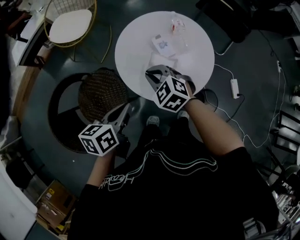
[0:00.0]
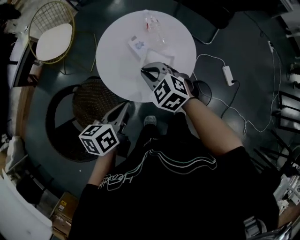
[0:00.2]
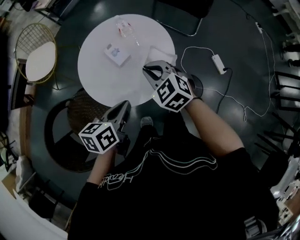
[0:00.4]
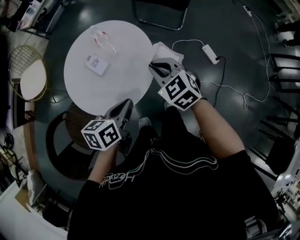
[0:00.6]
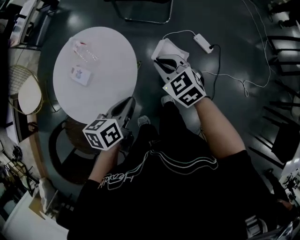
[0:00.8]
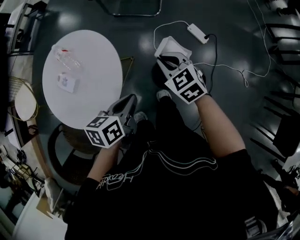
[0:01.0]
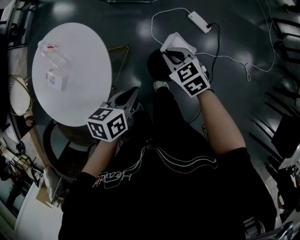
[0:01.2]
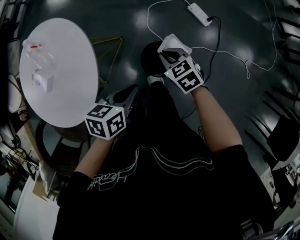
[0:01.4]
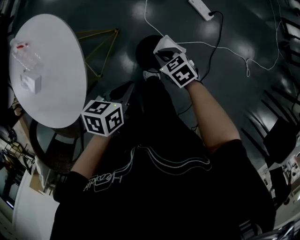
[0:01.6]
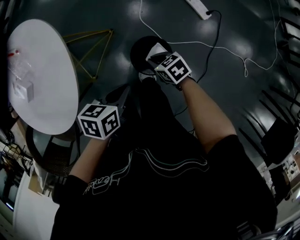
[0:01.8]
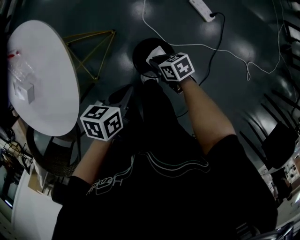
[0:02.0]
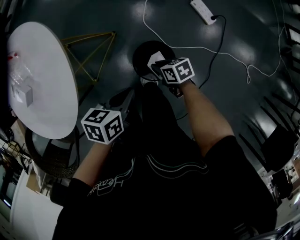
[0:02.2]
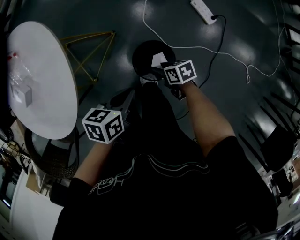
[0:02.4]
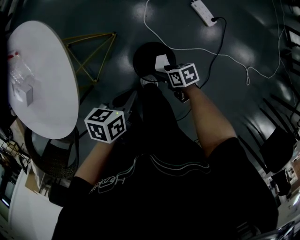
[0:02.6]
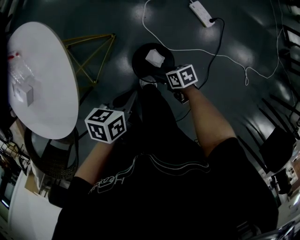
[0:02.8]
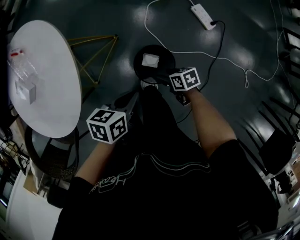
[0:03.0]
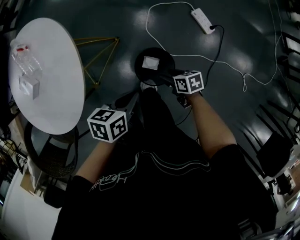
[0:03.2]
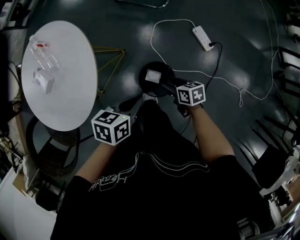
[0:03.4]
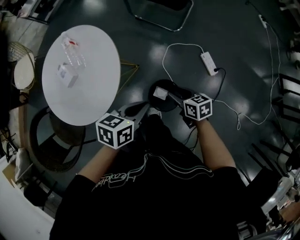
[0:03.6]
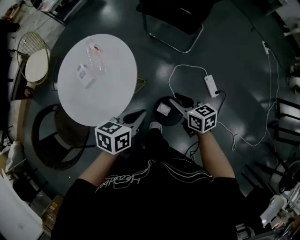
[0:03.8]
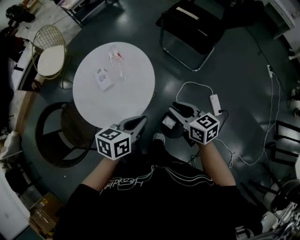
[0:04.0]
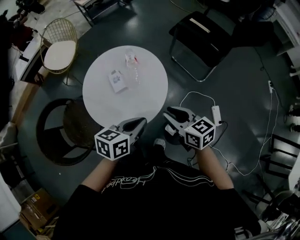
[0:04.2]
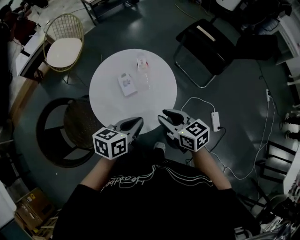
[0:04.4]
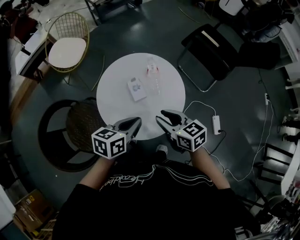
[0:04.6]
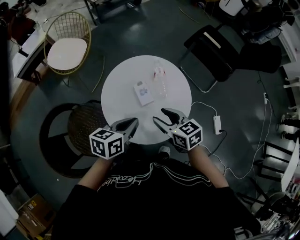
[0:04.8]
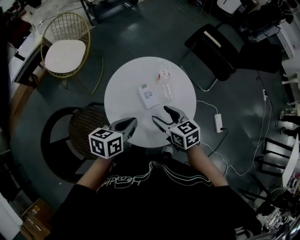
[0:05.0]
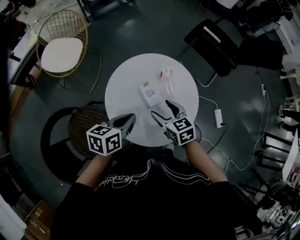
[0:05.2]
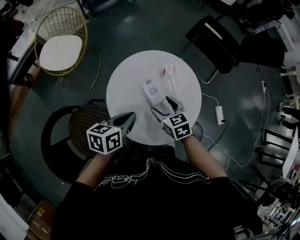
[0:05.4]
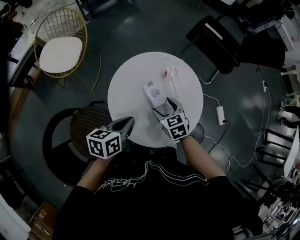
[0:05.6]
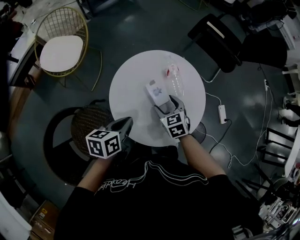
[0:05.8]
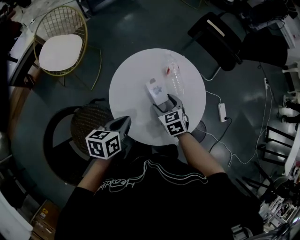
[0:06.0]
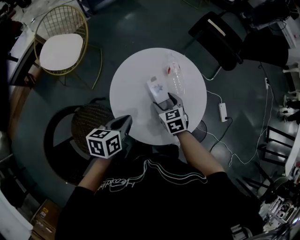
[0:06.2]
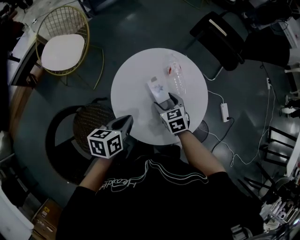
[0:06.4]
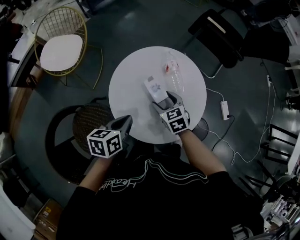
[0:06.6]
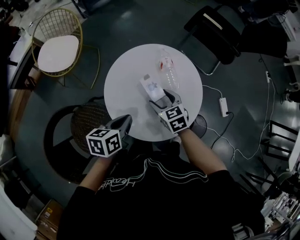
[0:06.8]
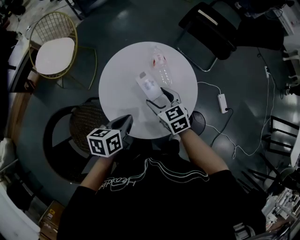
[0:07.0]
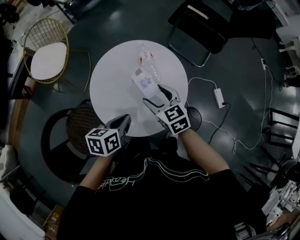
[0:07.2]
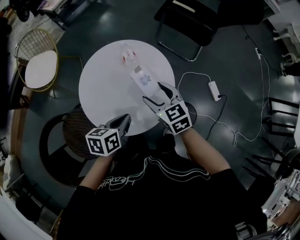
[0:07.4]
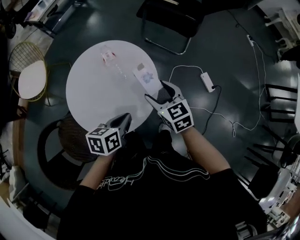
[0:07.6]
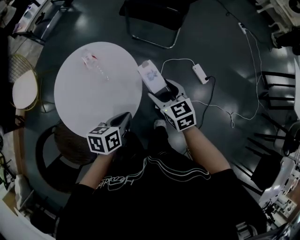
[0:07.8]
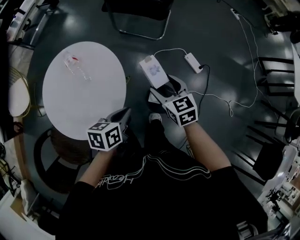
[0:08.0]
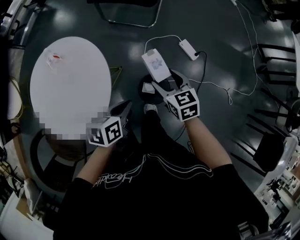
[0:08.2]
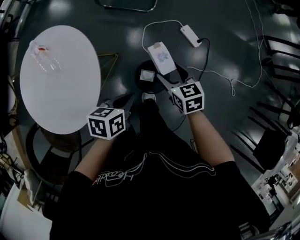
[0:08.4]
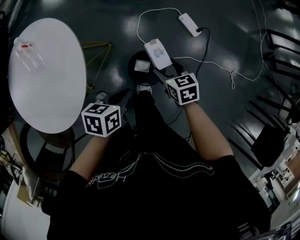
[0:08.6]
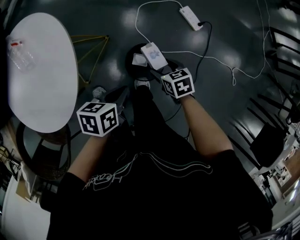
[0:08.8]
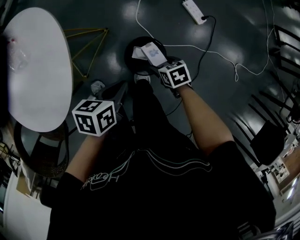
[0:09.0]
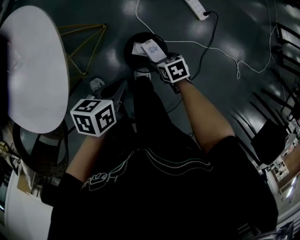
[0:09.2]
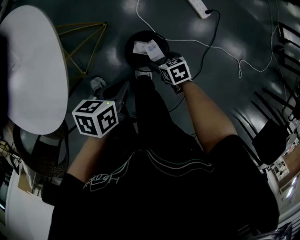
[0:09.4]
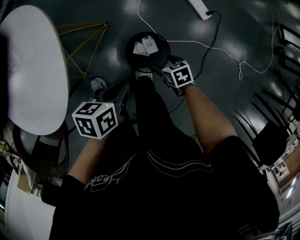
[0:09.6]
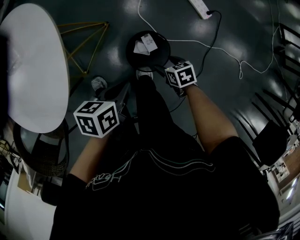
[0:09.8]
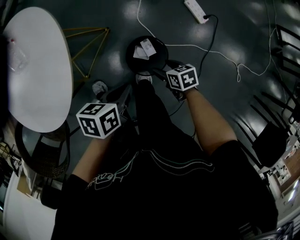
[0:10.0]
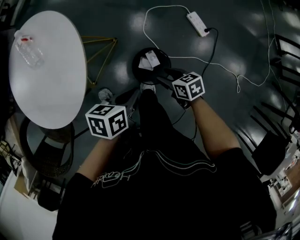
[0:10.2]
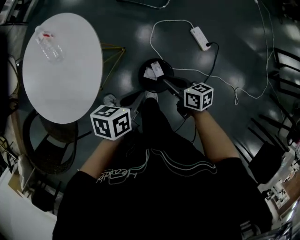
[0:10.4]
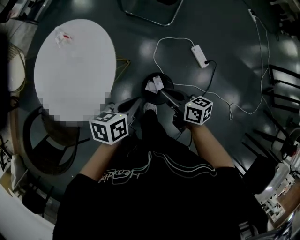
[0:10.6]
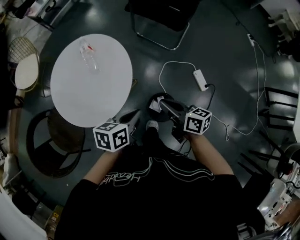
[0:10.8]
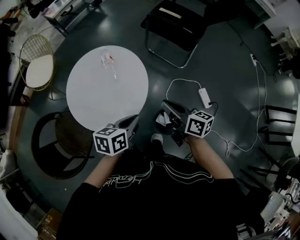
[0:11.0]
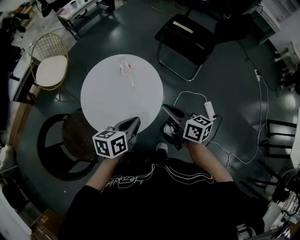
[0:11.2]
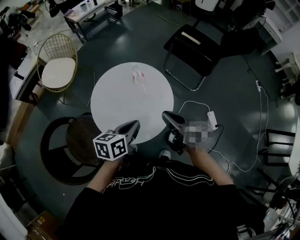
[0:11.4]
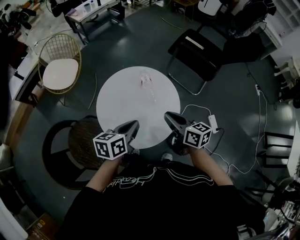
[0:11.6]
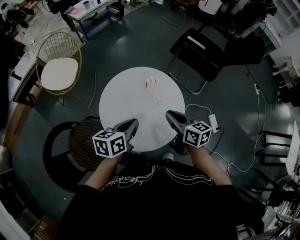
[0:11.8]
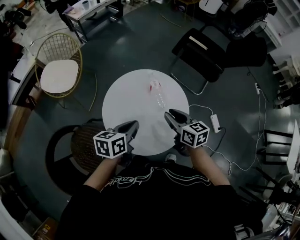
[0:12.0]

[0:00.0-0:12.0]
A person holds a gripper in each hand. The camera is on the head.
0:00.0 to 0:01.6: The pair of grippers is taken approximately 50 cm. The right gripper rolls clockwise, seen from behind, by some 60 degrees; the left gripper turns by approximately 50 degrees.
0:01.6 to 0:03.0: The right gripper shifts about 10 cm downward, rotates some 30 degrees, and opens.
0:03.0 to 0:04.4: The right gripper goes approximately 40 cm upward, rolls counterclockwise, seen from behind, by some 50 degrees, and closes up, while the left gripper goes about 25 cm upward, and turns by about 40 degrees.
0:04.4 to 0:06.0: The right gripper travels downward, to the left and forward by approximately 25 cm, rotates approximately 30 degrees, and opens its fingers. The left gripper goes approximately 25 cm to the left.
0:06.0 to 0:07.6: The left gripper travels to the right by roughly 20 cm; the right gripper shifts approximately 20 cm to the right and upward.
0:07.6 to 0:09.0: The right gripper goes roughly 35 cm downward, and turns by some 40 degrees. The left gripper shifts by about 30 cm, and turns by some 20 degrees.
0:09.0 to 0:10.4: The left gripper goes approximately 10 cm upward. Meanwhile the right gripper heads upward, covering approximately 15 cm, points its fingers some 30 degrees further upward, and closes up.
0:10.4 to 0:12.0: The left gripper is displaced to the left and upward by roughly 40 cm, and rotates roughly 30 degrees; the right gripper heads to the left, upward and forward, covering approximately 50 cm, and changes its angle by some 30 degrees.

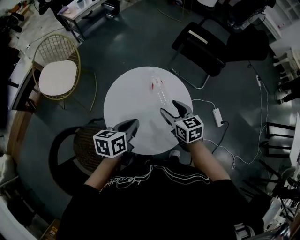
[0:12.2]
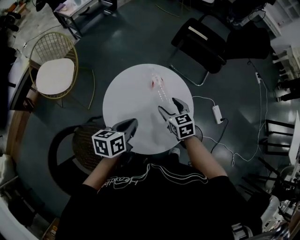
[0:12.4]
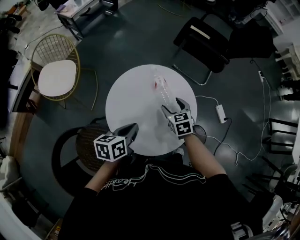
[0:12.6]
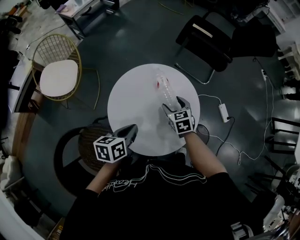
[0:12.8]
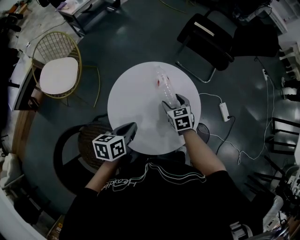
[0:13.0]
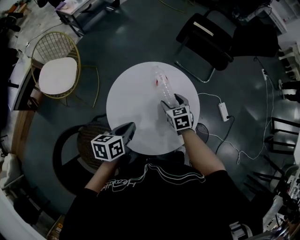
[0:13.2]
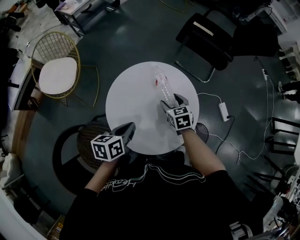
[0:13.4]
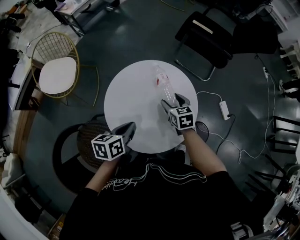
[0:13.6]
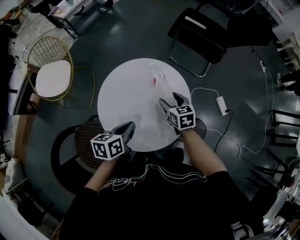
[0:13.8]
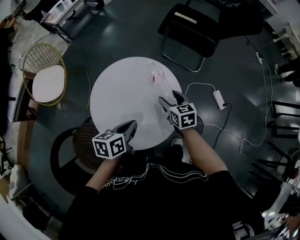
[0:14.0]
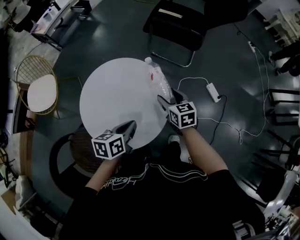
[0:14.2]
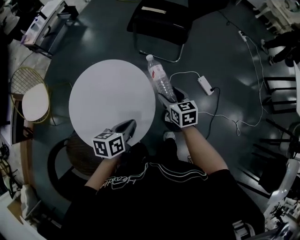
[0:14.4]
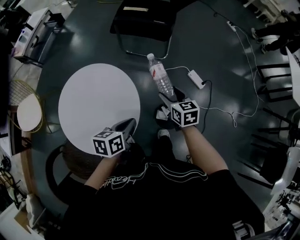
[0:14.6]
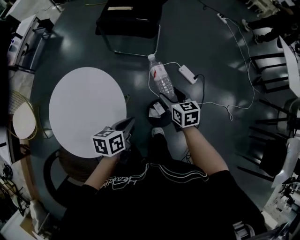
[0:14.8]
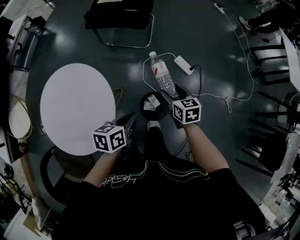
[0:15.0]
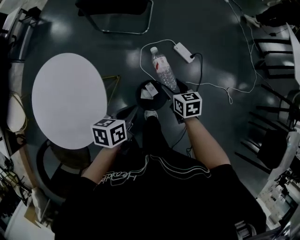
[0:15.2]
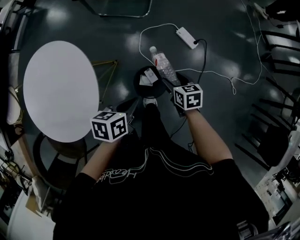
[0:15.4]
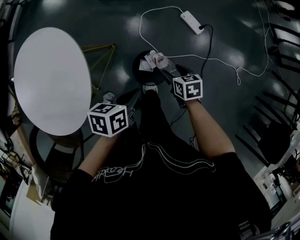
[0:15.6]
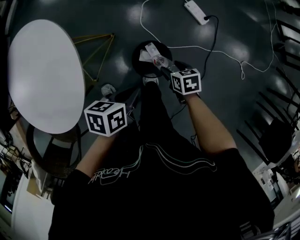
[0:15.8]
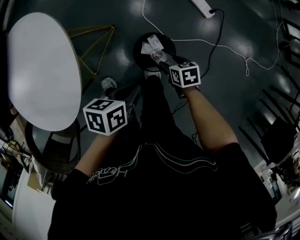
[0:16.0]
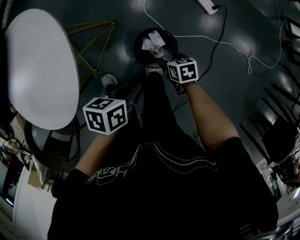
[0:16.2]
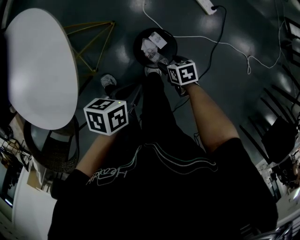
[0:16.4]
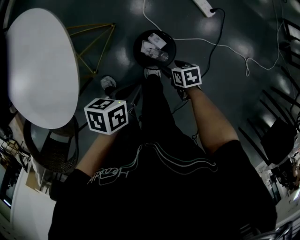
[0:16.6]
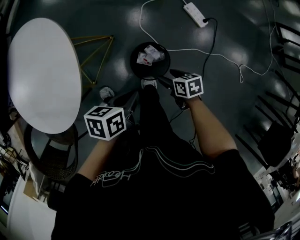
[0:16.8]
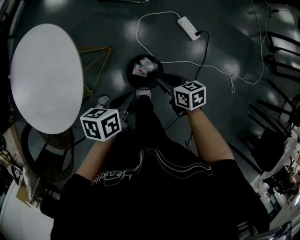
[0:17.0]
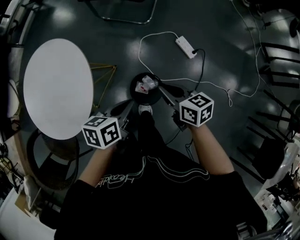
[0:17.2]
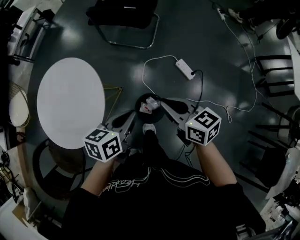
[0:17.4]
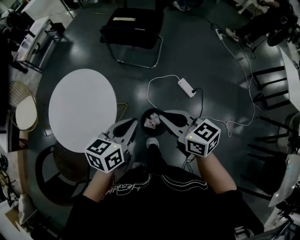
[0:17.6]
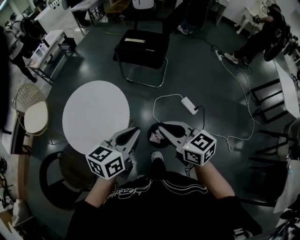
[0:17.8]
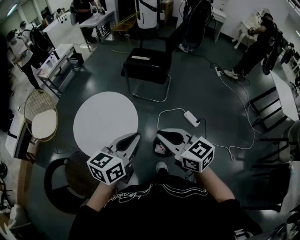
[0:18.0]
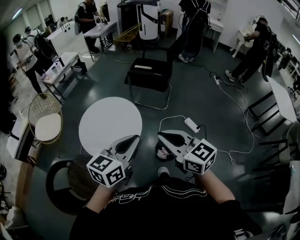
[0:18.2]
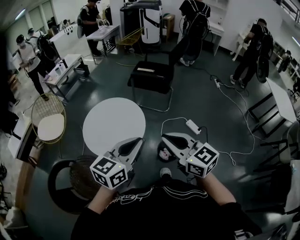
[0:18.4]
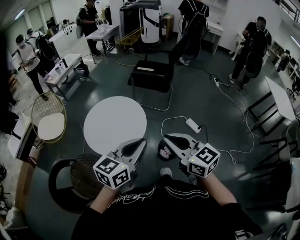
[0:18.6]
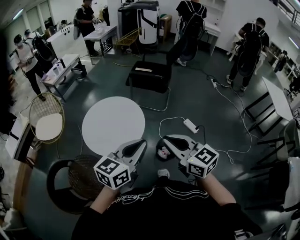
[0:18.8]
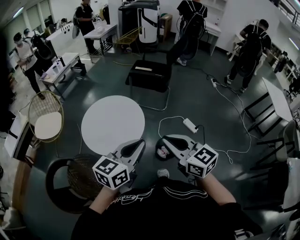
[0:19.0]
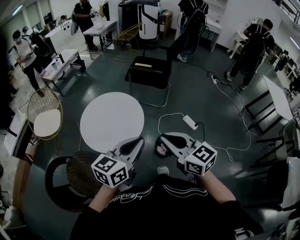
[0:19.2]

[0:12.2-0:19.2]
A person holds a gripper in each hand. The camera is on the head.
0:12.2 to 0:13.6: The right gripper travels downward by some 10 cm.
0:13.6 to 0:15.0: The right gripper moves some 40 cm, and swivels approximately 30 degrees. The left gripper shifts by roughly 40 cm, and rotates approximately 30 degrees.
0:15.0 to 0:16.4: The right gripper travels downward by about 30 cm, and swivels about 30 degrees. Meanwhile the left gripper heads downward, covering about 15 cm.
0:16.4 to 0:17.8: The grippers both shift upward by approximately 50 cm. The left gripper swivels about 50 degrees. The right gripper angles its fingers upward, by approximately 40 degrees, and closes its fingers.
0:17.8 to 0:19.2: The two grippers go approximately 20 cm backward, to the left and upward.

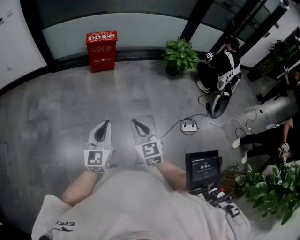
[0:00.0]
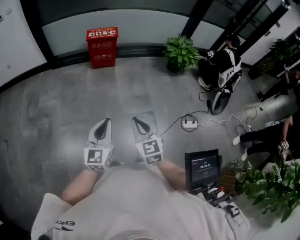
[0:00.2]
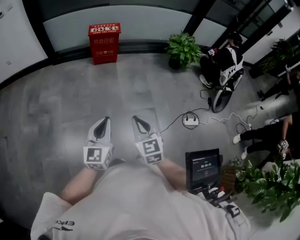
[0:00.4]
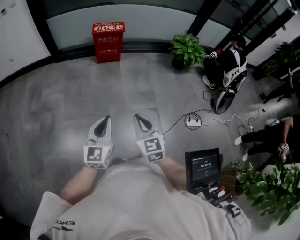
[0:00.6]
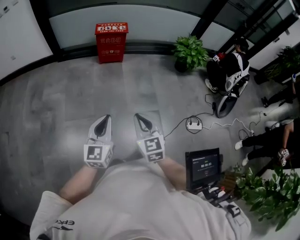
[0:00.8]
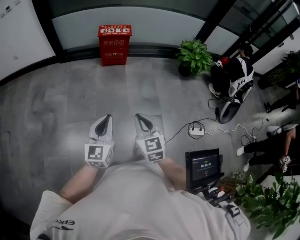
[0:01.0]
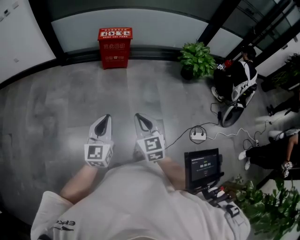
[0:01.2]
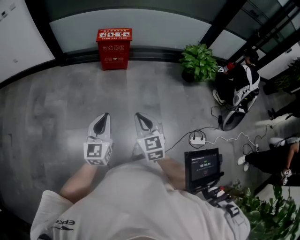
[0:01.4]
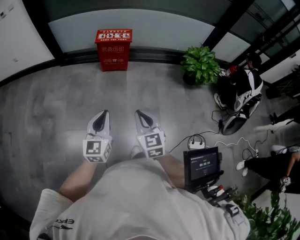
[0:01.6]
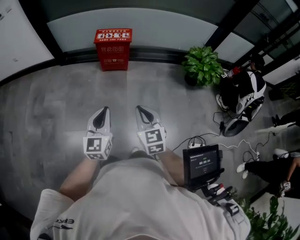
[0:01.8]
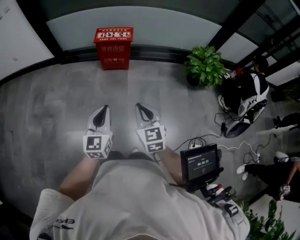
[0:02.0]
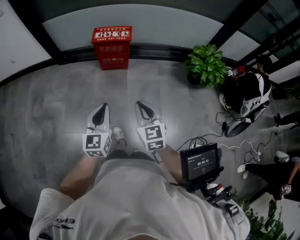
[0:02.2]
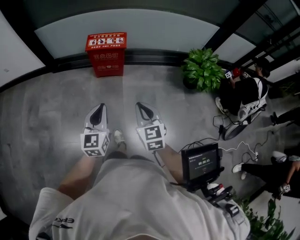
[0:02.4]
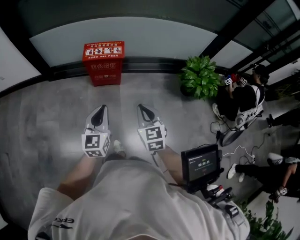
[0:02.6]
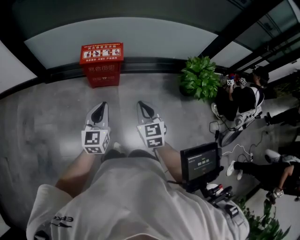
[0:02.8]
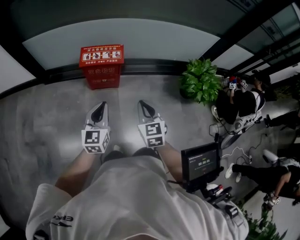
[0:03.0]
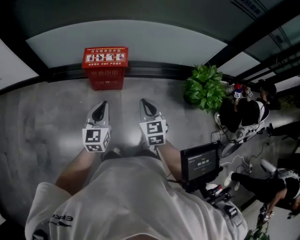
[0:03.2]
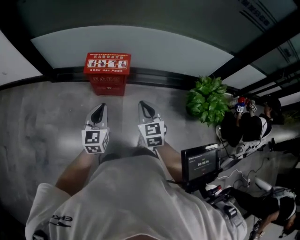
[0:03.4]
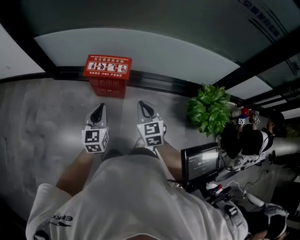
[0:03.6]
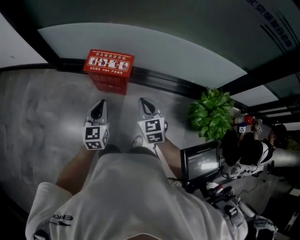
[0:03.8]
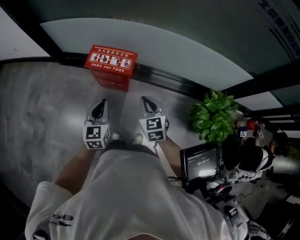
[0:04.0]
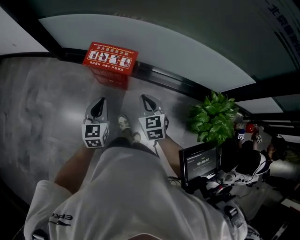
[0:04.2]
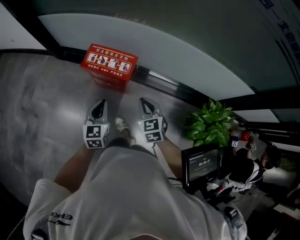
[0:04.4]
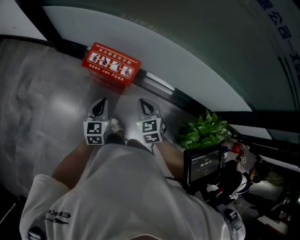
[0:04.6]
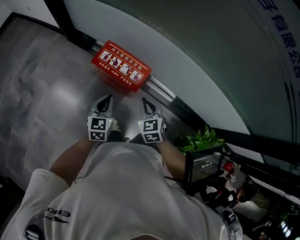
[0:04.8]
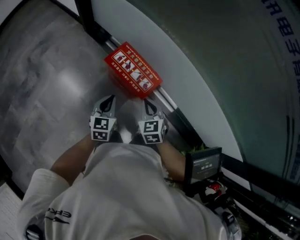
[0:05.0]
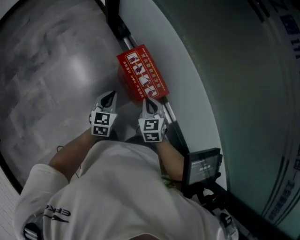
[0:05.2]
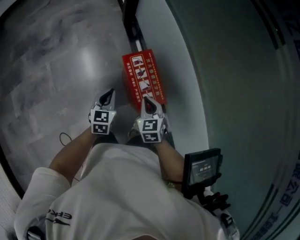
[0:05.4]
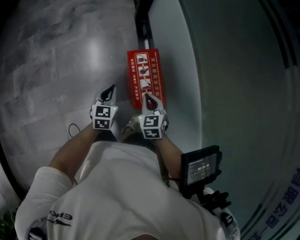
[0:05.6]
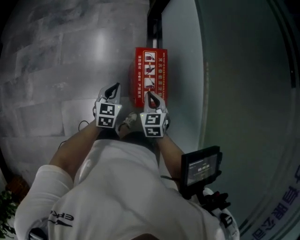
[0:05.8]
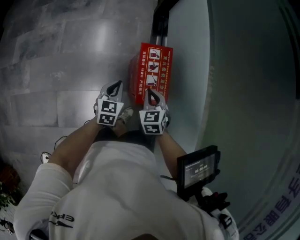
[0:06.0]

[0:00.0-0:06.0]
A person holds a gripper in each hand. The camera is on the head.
0:00.0 to 0:01.6: The two grippers go roughly 25 cm forward.
0:01.6 to 0:03.0: Both grippers travel together forward, approximately 40 cm.
0:03.0 to 0:04.4: The right gripper heads forward and to the right, covering about 30 cm, and turns by approximately 30 degrees. The left gripper travels forward, to the right and downward by approximately 25 cm, and swivels about 30 degrees.
0:04.4 to 0:06.0: The right gripper ends up approximately 25 cm from where it was, and rotates approximately 70 degrees. The left gripper heads downward, covering approximately 15 cm, and rotates some 60 degrees.
